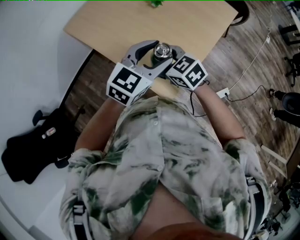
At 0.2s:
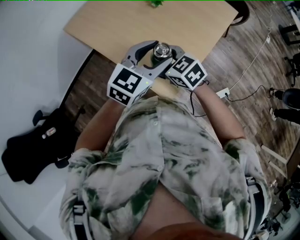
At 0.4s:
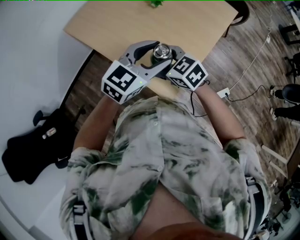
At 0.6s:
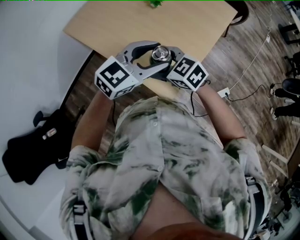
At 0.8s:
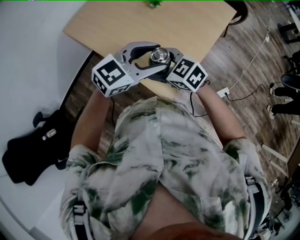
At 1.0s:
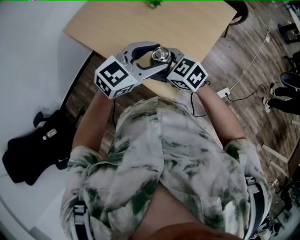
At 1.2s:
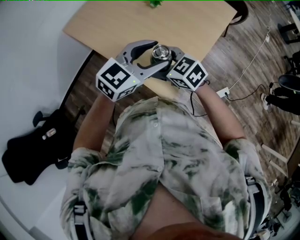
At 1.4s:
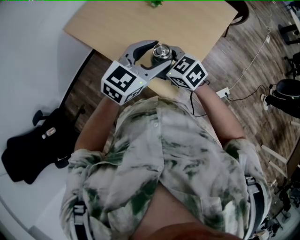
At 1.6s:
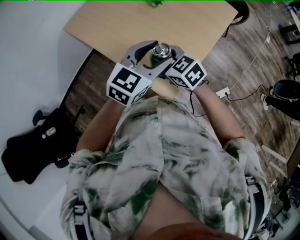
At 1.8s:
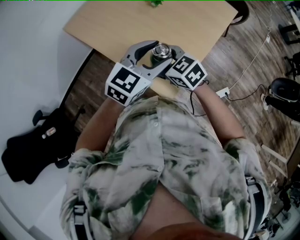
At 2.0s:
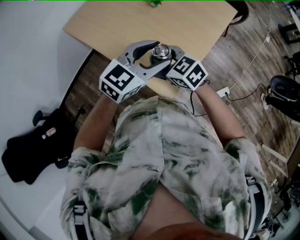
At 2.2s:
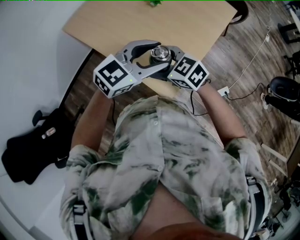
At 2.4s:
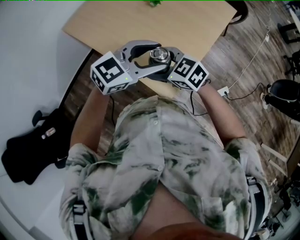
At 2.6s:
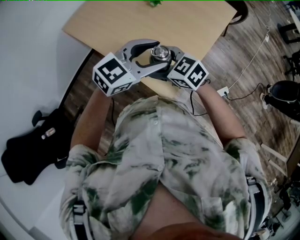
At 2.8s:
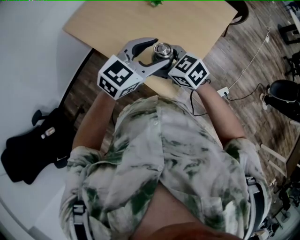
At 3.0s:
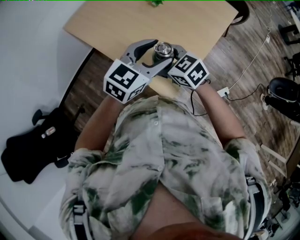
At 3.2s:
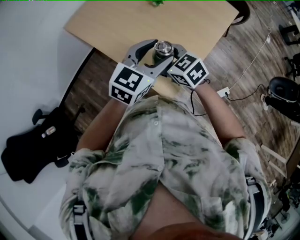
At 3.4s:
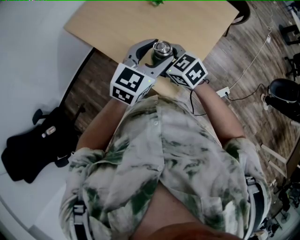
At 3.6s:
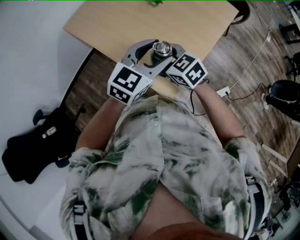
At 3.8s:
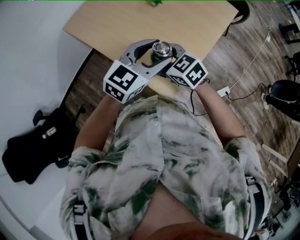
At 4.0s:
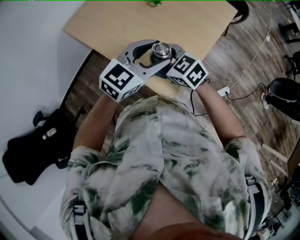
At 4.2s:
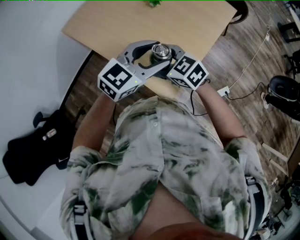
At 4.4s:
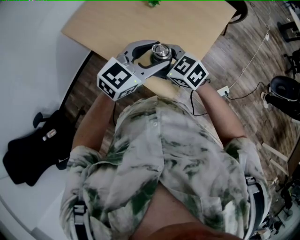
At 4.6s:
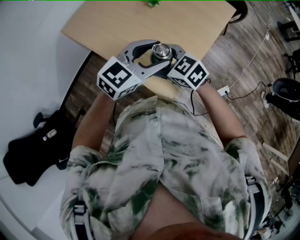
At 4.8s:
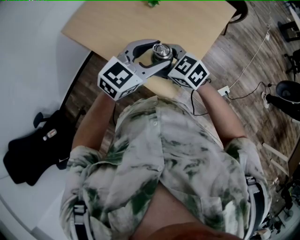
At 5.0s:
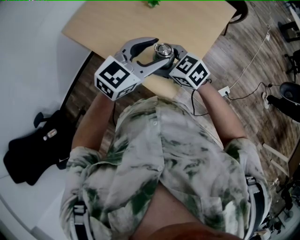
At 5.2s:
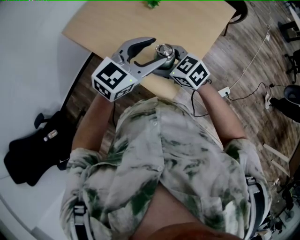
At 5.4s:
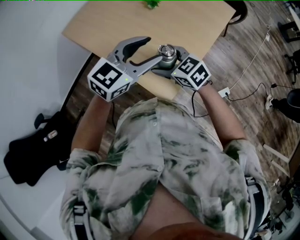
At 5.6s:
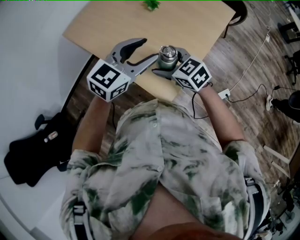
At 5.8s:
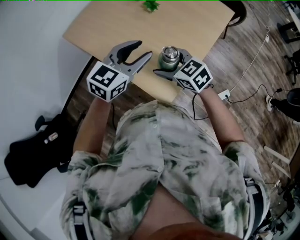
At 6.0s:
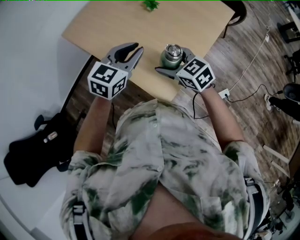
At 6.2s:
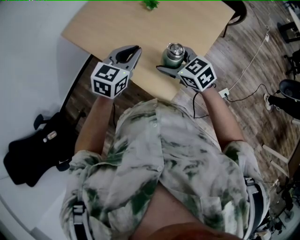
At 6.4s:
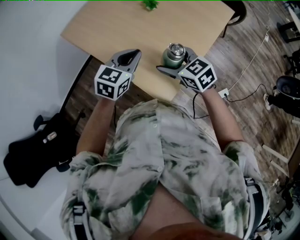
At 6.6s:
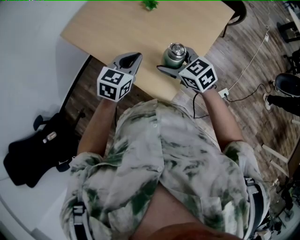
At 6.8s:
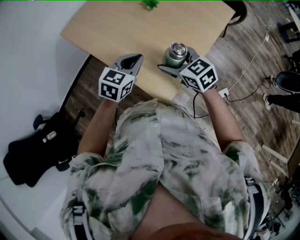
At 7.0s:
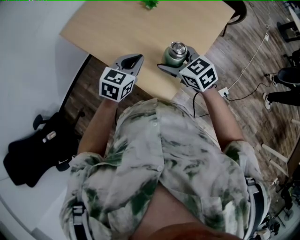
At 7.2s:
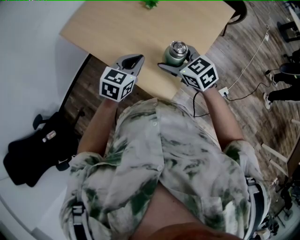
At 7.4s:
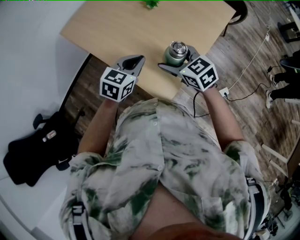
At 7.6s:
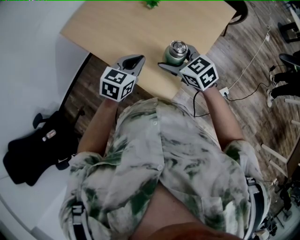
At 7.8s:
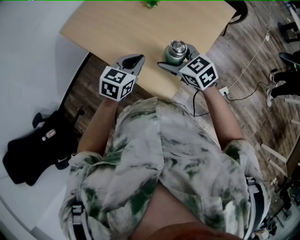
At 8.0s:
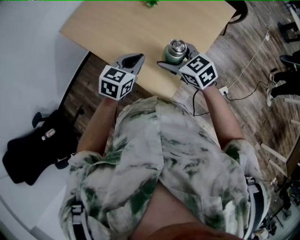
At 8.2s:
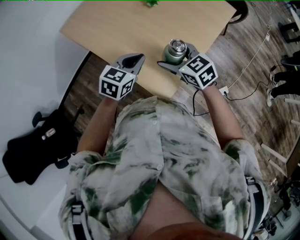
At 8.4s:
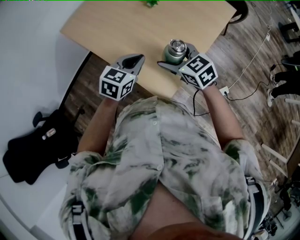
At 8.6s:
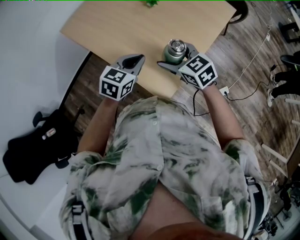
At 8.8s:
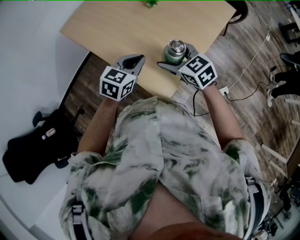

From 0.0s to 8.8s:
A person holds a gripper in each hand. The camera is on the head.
From 1.4s to 5.8s: The grippers make only small movements.
From 5.8s to 7.4s: The left gripper moves downward, roughly 10 cm, and closes its fingers.
From 7.4s to 8.8s: The two grippers keep their place.

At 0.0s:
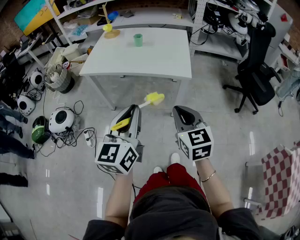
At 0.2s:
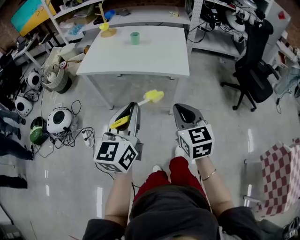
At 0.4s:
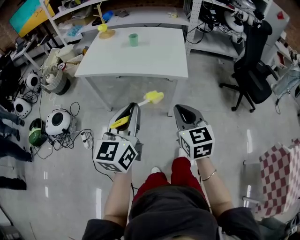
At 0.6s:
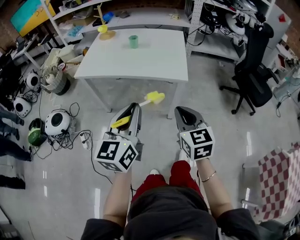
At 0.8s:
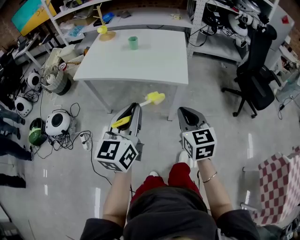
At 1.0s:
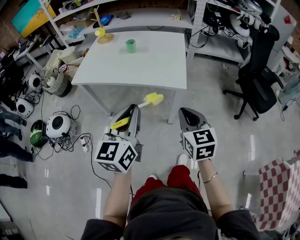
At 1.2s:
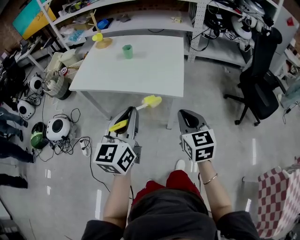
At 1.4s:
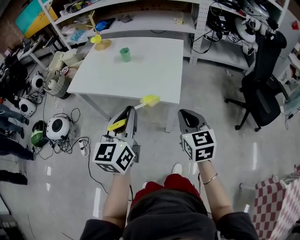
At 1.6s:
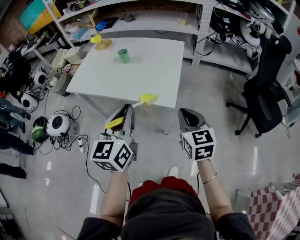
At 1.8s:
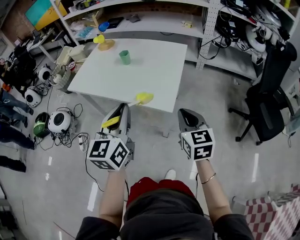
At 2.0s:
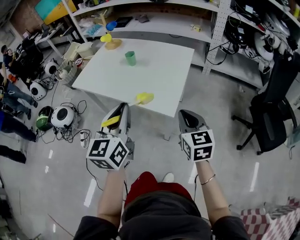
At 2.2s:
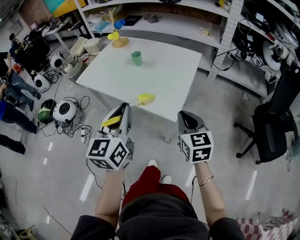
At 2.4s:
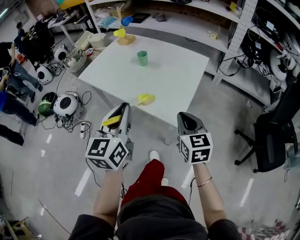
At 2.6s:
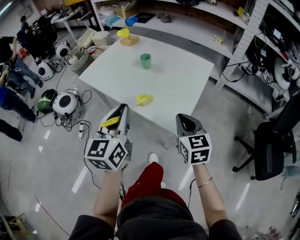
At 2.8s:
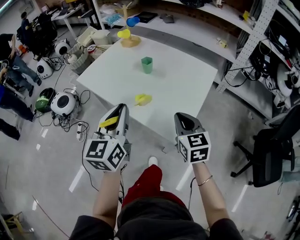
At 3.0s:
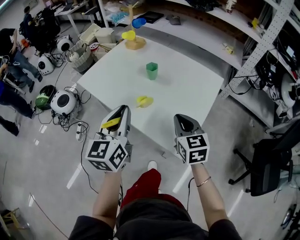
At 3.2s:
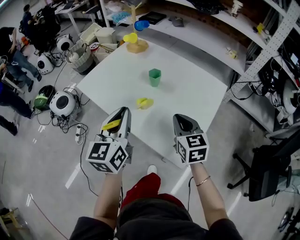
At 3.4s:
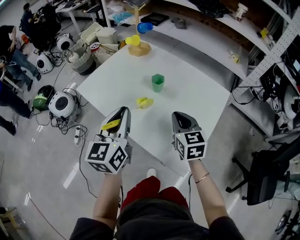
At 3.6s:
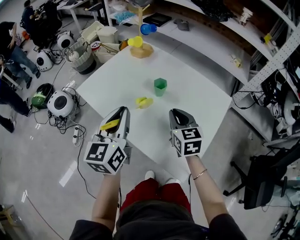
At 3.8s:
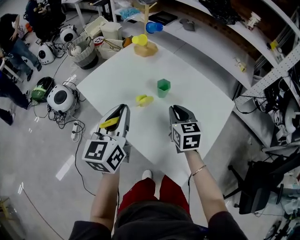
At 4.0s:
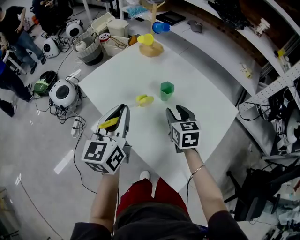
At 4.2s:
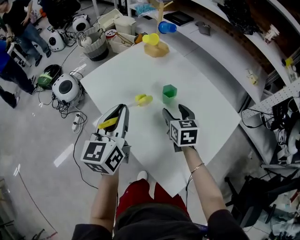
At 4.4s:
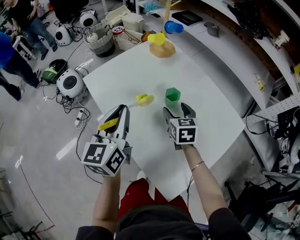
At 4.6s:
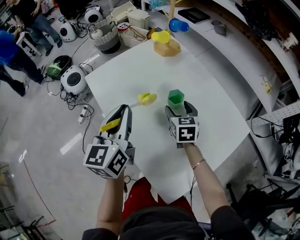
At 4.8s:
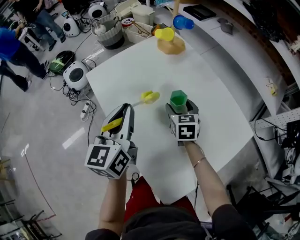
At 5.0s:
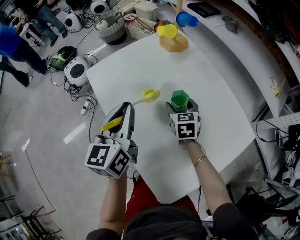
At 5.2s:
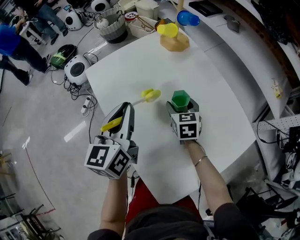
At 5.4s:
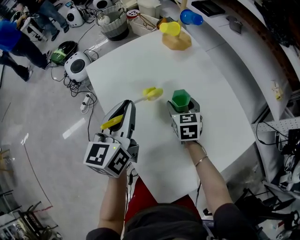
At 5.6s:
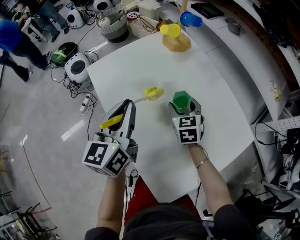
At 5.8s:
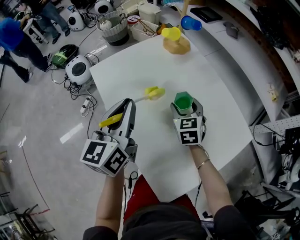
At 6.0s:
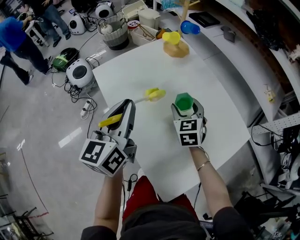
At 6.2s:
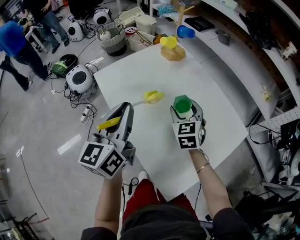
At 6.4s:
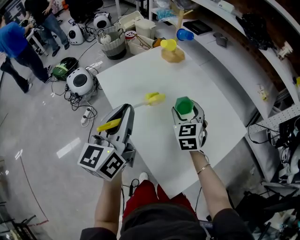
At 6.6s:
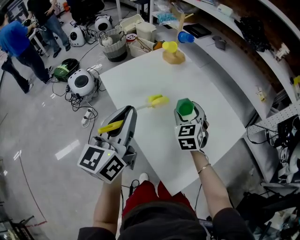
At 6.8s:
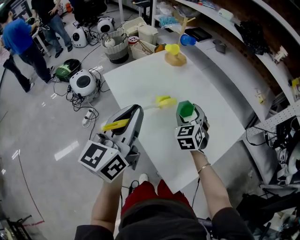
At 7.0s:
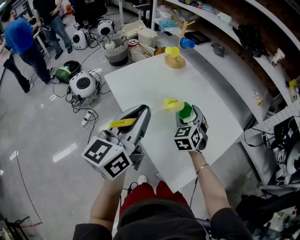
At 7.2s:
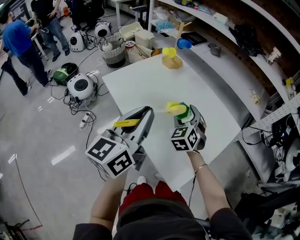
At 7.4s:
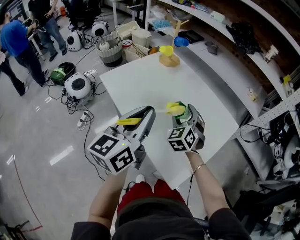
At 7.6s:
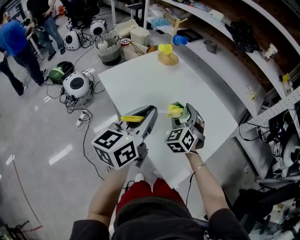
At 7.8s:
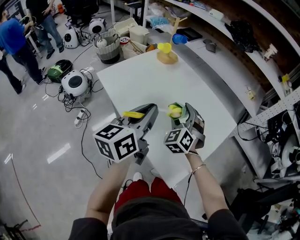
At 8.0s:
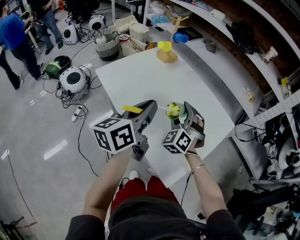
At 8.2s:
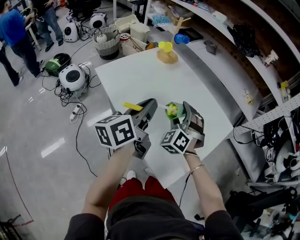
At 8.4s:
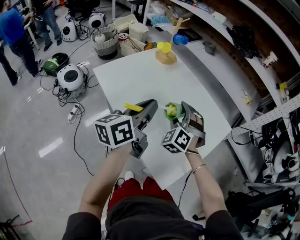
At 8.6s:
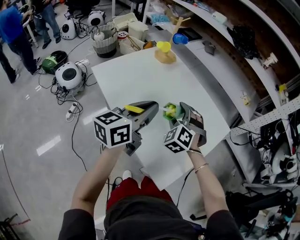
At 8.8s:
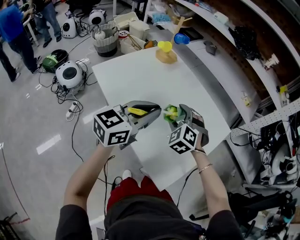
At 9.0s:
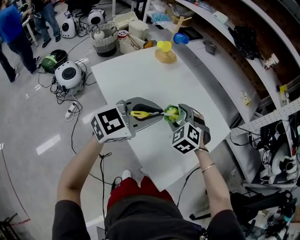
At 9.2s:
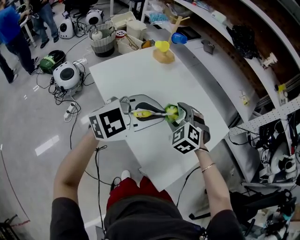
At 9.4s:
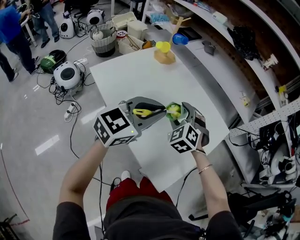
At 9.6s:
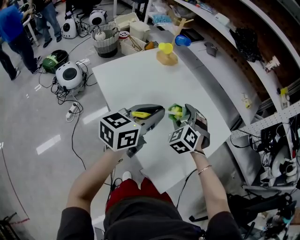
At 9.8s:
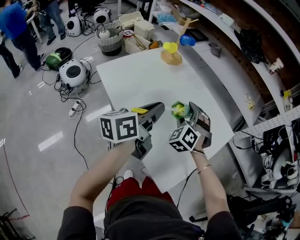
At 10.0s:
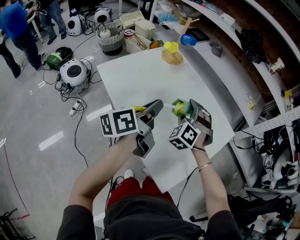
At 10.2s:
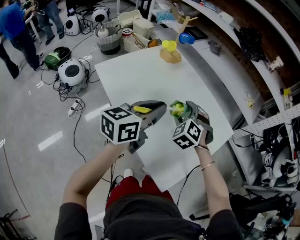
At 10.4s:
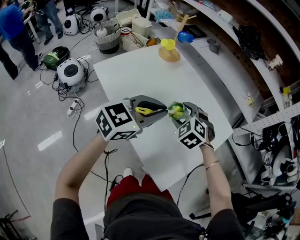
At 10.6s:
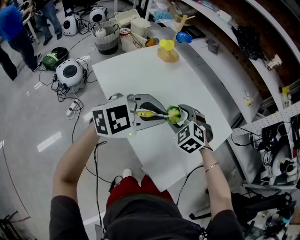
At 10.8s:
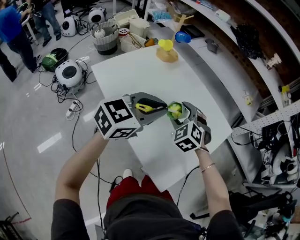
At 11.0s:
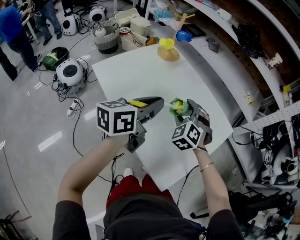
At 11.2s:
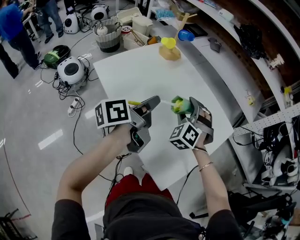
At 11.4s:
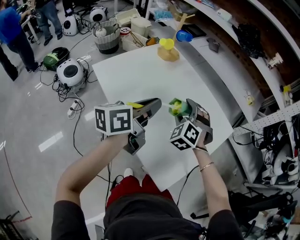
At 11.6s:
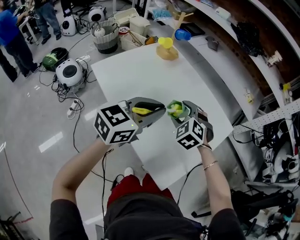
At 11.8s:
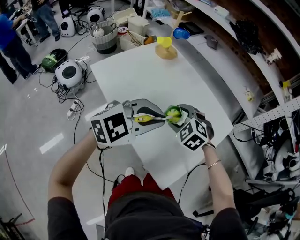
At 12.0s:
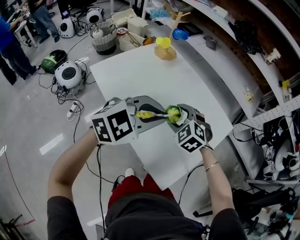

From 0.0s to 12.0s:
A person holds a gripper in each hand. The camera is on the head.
From 0.0s to 1.6s: Both grippers move forward and to the right, about 25 cm.
From 1.6s to 3.0s: The grippers both shift forward by some 25 cm. The left gripper changes its angle by approximately 20 degrees. The right gripper changes its angle by roughly 20 degrees.
From 3.0s to 4.4s: The right gripper is displaced forward by approximately 30 cm, and opens. The left gripper heads forward, covering approximately 15 cm.
From 4.4s to 6.0s: The right gripper rotates some 20 degrees.
From 6.0s to 7.6s: The left gripper is displaced backward and to the right by some 10 cm, and changes its angle by about 20 degrees, while the right gripper travels backward and upward by about 15 cm, and turns by roughly 30 degrees.
From 7.6s to 9.0s: The left gripper ends up about 5 cm from where it was, and changes its angle by some 50 degrees; the right gripper turns by some 30 degrees.
From 10.4s to 12.0s: The left gripper goes to the left and returns, roughly 5 cm each way, and swivels approximately 30 degrees.

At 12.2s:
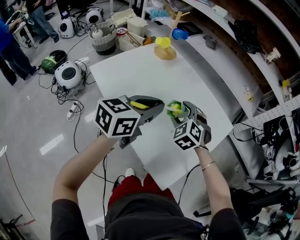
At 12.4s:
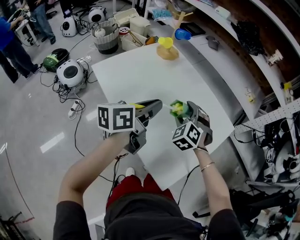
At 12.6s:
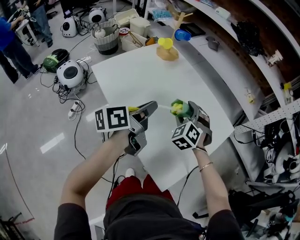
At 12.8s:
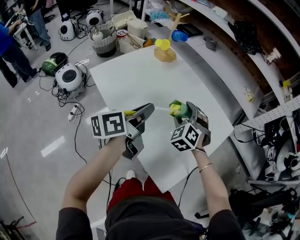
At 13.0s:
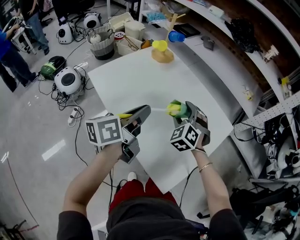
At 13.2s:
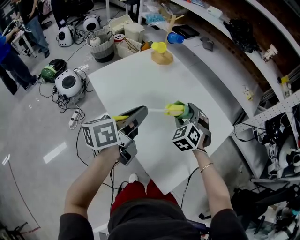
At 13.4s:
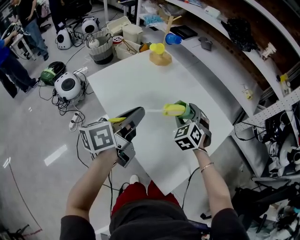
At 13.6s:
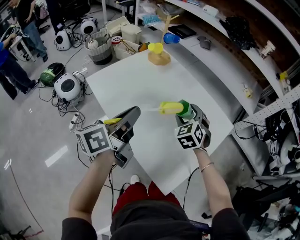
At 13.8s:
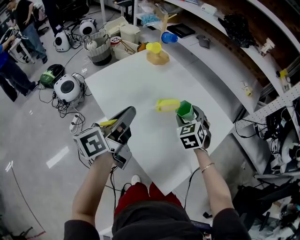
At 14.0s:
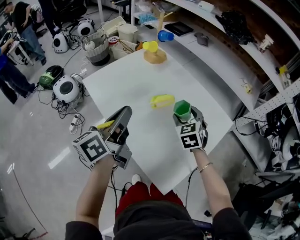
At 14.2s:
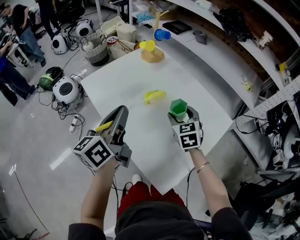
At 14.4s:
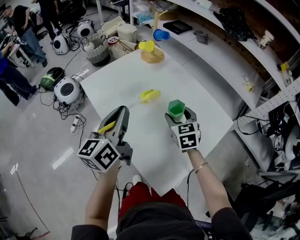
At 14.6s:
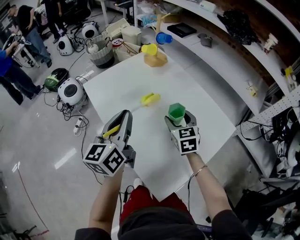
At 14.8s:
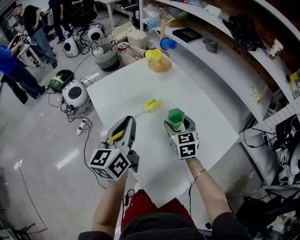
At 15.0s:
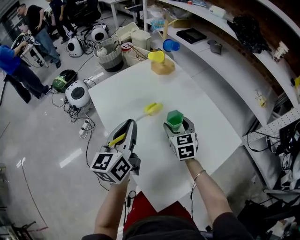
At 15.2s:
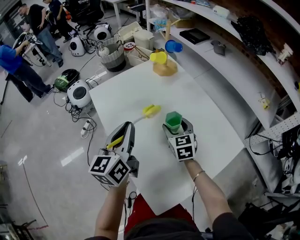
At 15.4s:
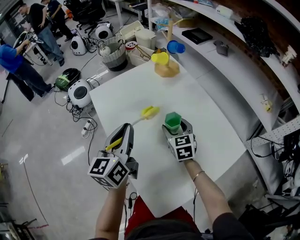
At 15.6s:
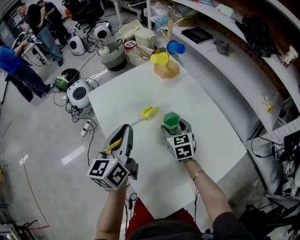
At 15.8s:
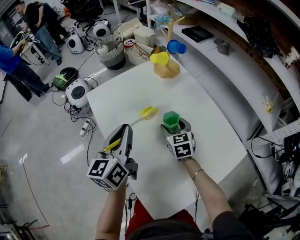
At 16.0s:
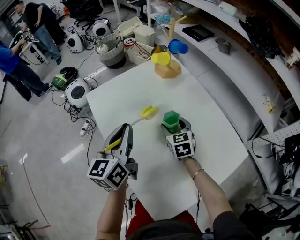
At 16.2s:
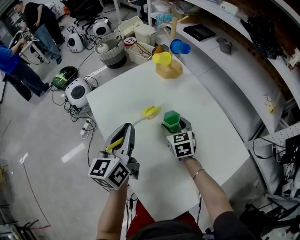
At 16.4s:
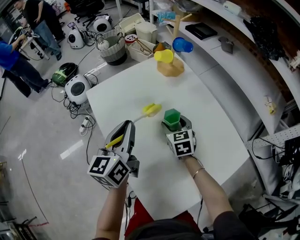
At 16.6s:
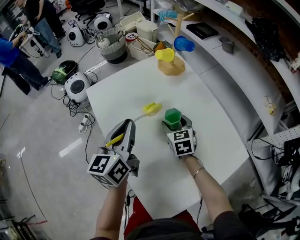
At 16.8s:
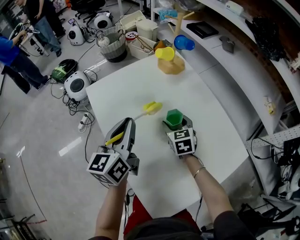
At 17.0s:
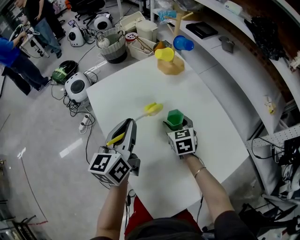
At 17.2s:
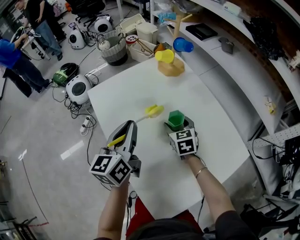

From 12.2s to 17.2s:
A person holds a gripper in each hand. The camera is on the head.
From 12.2s to 13.8s: The left gripper shifts roughly 5 cm to the left, and turns by roughly 40 degrees. Meanwhile the right gripper is displaced to the right by about 5 cm, and turns by approximately 20 degrees.
From 13.8s to 15.6s: The right gripper shifts by approximately 15 cm, and rotates some 30 degrees. The left gripper shifts by roughly 10 cm, and turns by approximately 40 degrees.
From 15.6s to 17.2s: There are only small adjustments of the grippers.
